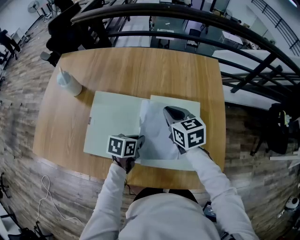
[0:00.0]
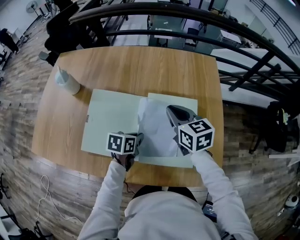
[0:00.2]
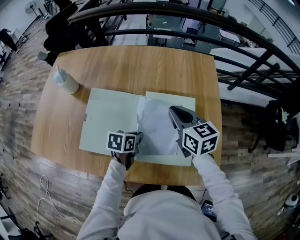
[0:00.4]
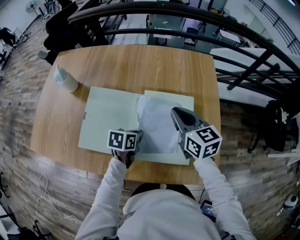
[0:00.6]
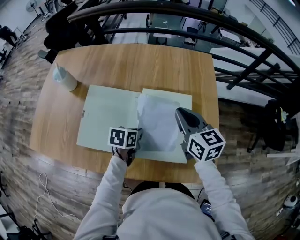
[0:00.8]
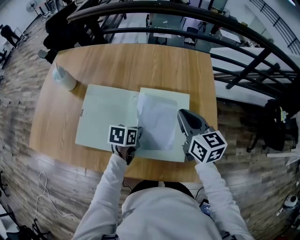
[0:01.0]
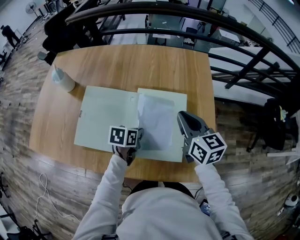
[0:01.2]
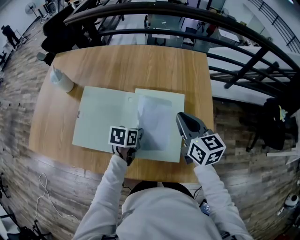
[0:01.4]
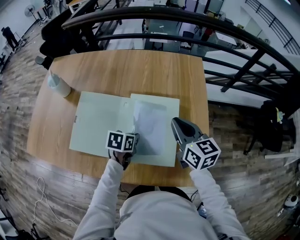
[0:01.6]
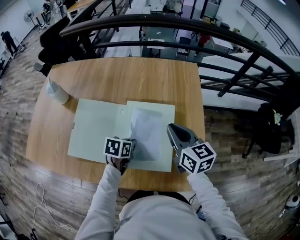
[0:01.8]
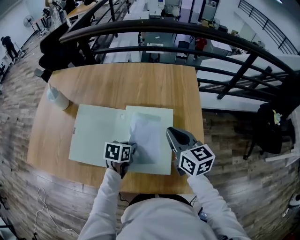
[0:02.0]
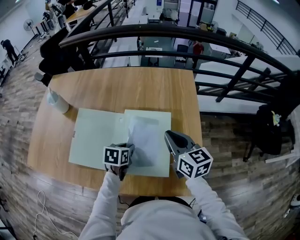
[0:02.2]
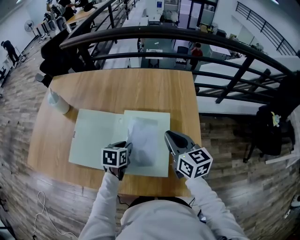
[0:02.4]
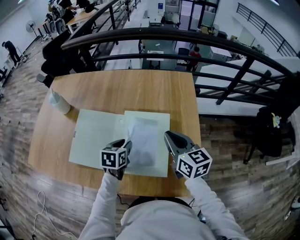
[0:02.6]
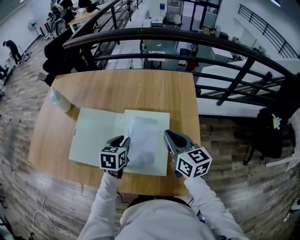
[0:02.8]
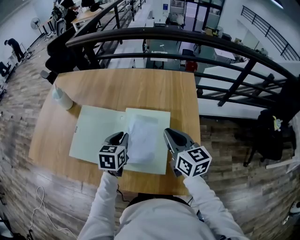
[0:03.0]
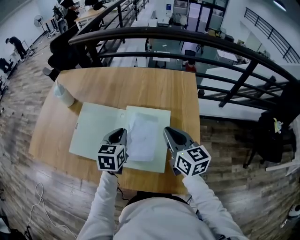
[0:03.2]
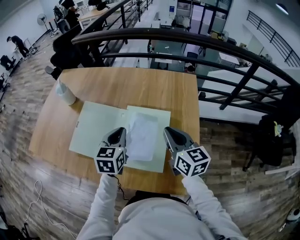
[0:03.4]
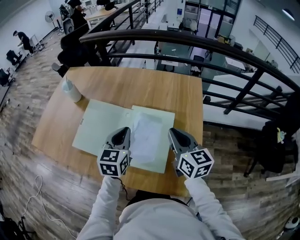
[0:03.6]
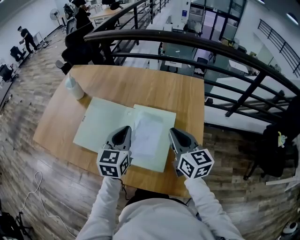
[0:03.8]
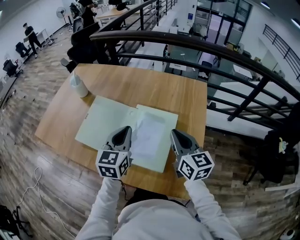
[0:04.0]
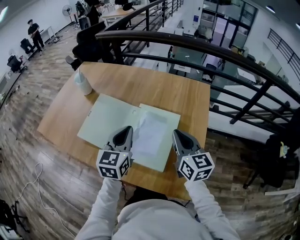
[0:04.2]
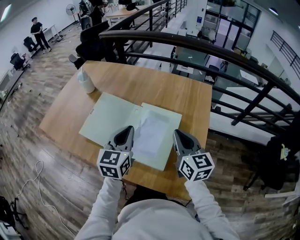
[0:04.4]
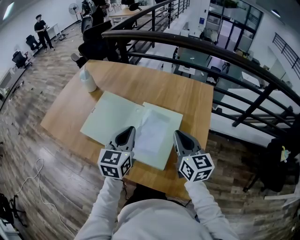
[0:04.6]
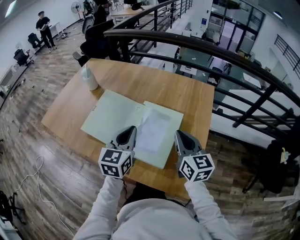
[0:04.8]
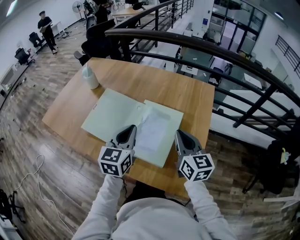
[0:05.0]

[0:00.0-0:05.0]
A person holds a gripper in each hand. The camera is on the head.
0:00.0 to 0:01.6: The right gripper is displaced to the right, backward and upward by some 15 cm. The left gripper heads to the right, covering about 5 cm.
0:01.6 to 0:03.4: The left gripper goes roughly 15 cm upward, turns by about 40 degrees, and opens, then closes once more.
0:03.4 to 0:05.0: The left gripper is displaced backward and upward by approximately 10 cm.

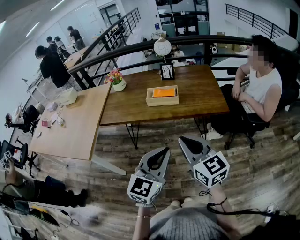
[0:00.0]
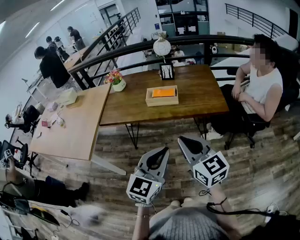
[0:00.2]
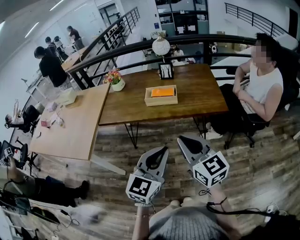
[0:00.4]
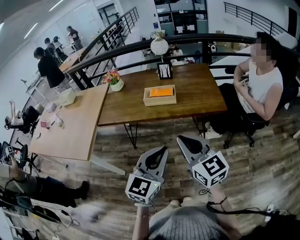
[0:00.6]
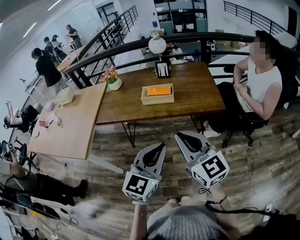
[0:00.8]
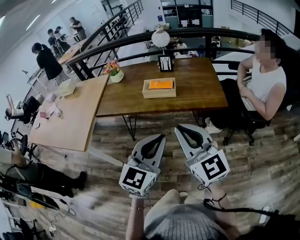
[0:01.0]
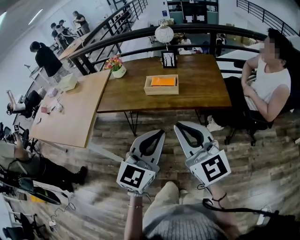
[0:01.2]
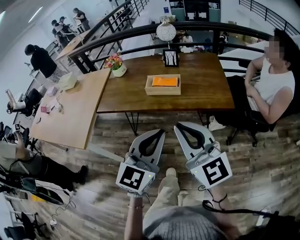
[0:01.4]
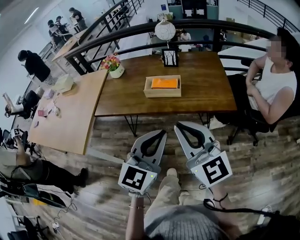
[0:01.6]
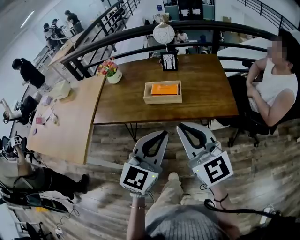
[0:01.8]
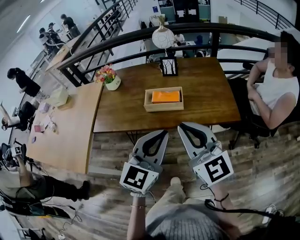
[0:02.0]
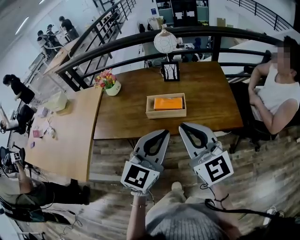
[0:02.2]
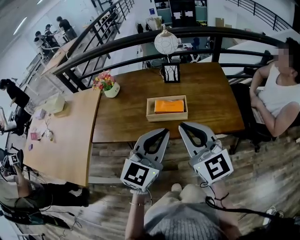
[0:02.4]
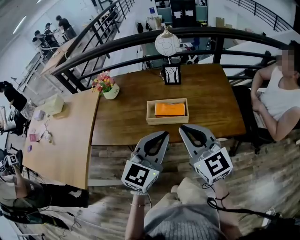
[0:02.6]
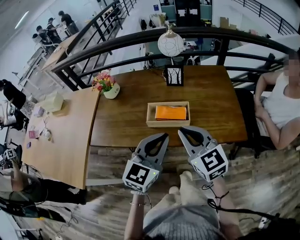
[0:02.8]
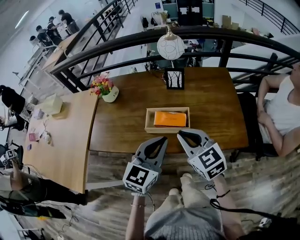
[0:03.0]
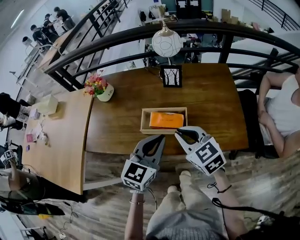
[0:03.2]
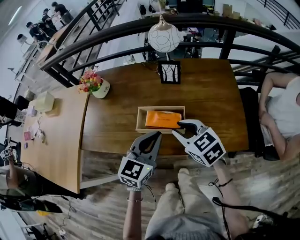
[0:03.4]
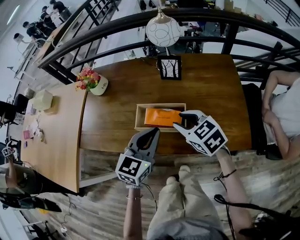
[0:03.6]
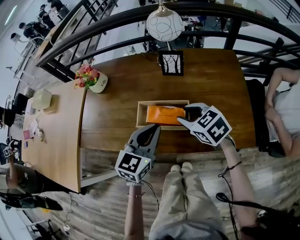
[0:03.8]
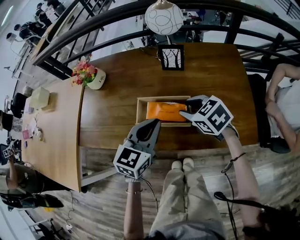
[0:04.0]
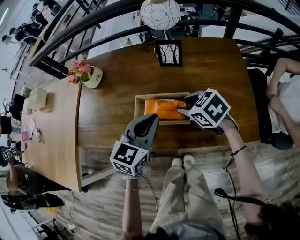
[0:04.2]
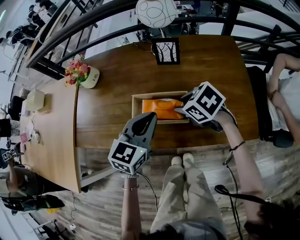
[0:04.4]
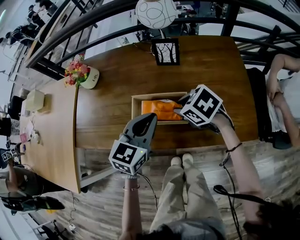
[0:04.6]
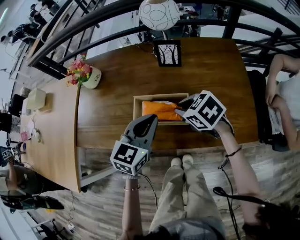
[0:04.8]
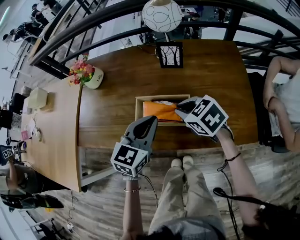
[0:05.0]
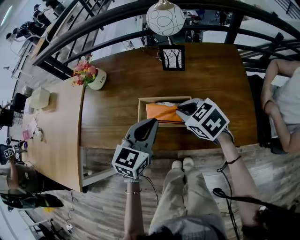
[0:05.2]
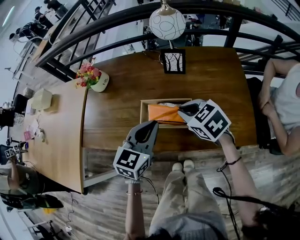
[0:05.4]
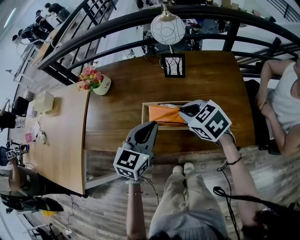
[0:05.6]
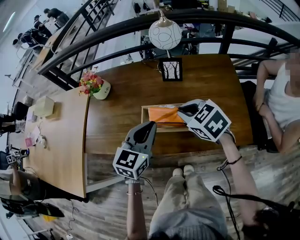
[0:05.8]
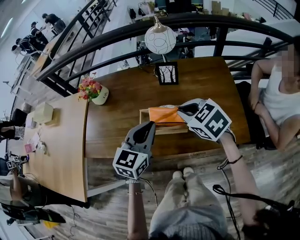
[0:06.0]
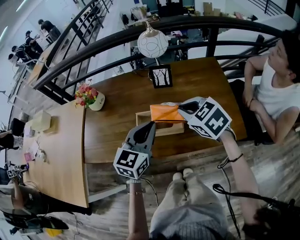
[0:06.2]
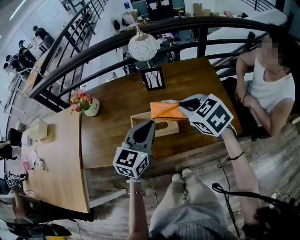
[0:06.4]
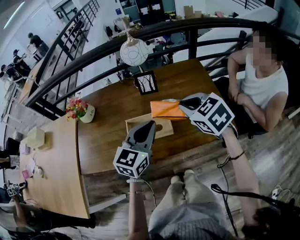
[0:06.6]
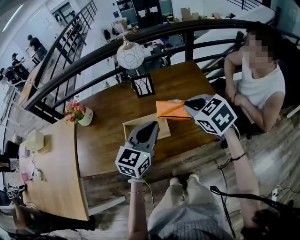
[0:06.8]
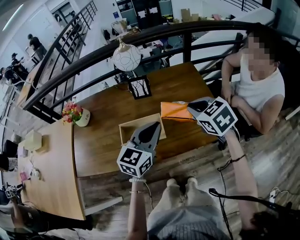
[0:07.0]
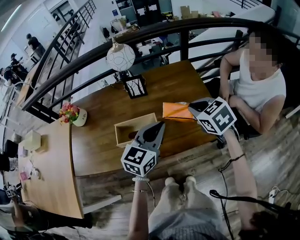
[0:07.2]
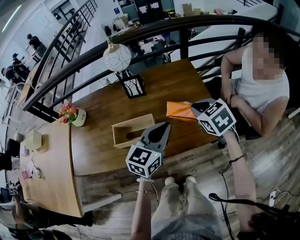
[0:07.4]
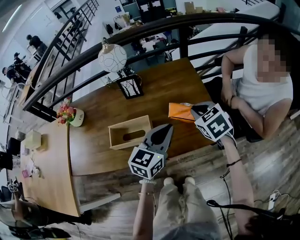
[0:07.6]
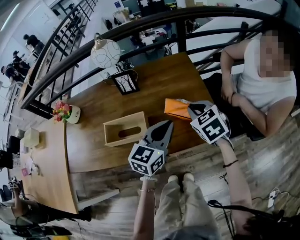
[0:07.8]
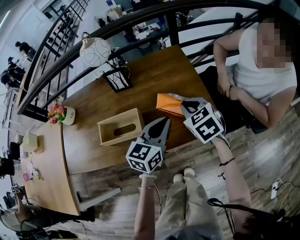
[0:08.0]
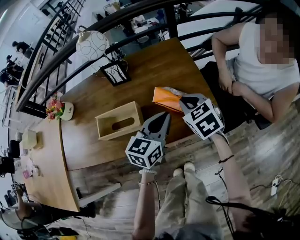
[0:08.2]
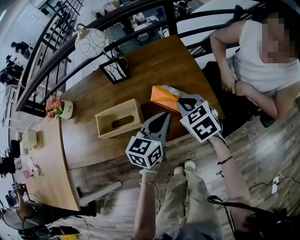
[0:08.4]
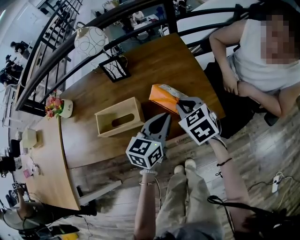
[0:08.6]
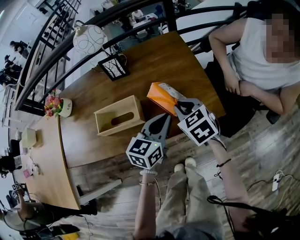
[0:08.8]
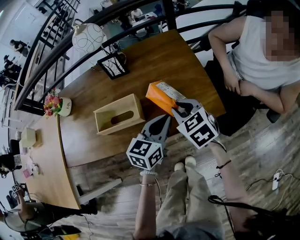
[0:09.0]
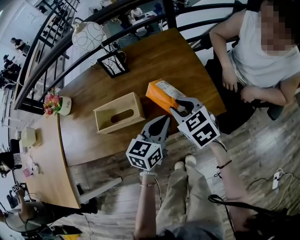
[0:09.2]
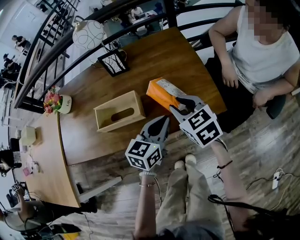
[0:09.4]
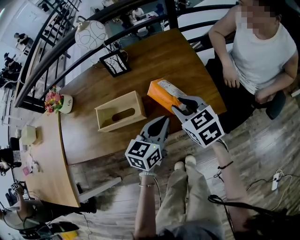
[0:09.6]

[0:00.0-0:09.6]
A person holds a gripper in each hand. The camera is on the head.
0:00.0 to 0:01.6: The left gripper shifts approximately 10 cm forward. Meanwhile the right gripper moves forward and upward, about 10 cm.
0:01.6 to 0:03.2: The right gripper shifts some 30 cm forward and downward, and tips its fingers downward by about 40 degrees; the left gripper heads forward, covering some 25 cm.
0:03.2 to 0:04.8: The left gripper goes approximately 10 cm forward and downward. Meanwhile the right gripper travels downward and forward by roughly 15 cm, and rotates roughly 30 degrees.
0:04.8 to 0:06.4: The left gripper heads upward, covering about 10 cm. The right gripper travels upward and to the right by approximately 15 cm, and changes its angle by roughly 20 degrees.
0:06.4 to 0:08.0: The right gripper moves to the right and downward, about 20 cm; the left gripper goes some 20 cm to the right.
0:08.0 to 0:09.6: The left gripper moves roughly 5 cm; the right gripper moves backward, roughly 5 cm.

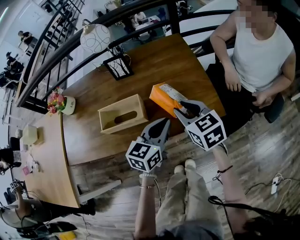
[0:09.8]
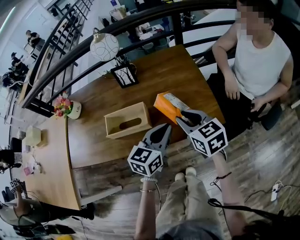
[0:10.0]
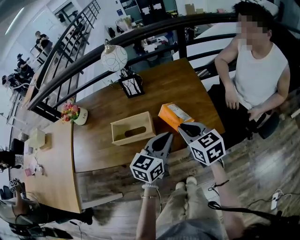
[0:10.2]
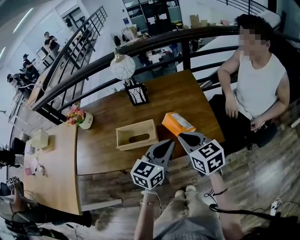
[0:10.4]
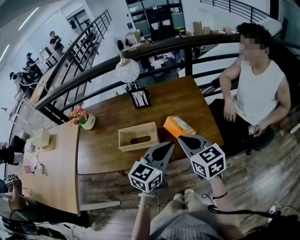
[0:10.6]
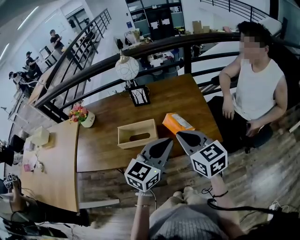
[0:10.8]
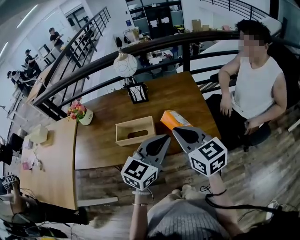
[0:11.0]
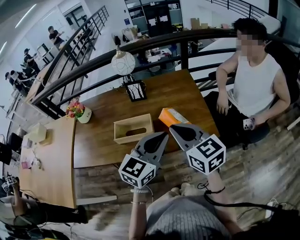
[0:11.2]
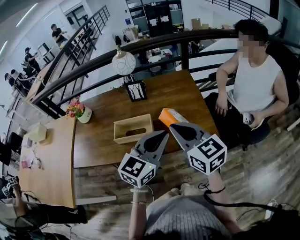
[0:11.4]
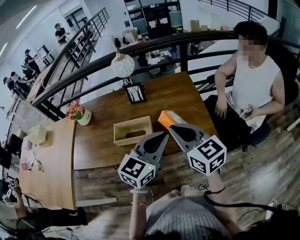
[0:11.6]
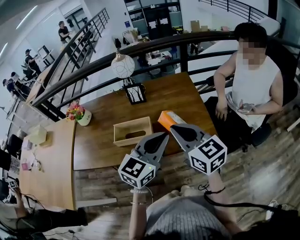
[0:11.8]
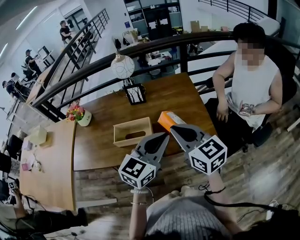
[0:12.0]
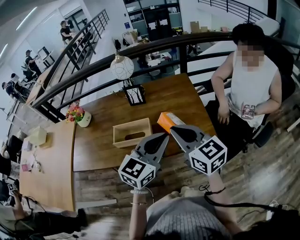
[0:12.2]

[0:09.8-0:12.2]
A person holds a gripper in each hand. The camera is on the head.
0:09.8 to 0:11.0: The right gripper travels upward and backward by some 15 cm, and closes up, while the left gripper shifts about 15 cm upward.
0:11.0 to 0:12.2: The grippers stay close to where they were, moving slightly.

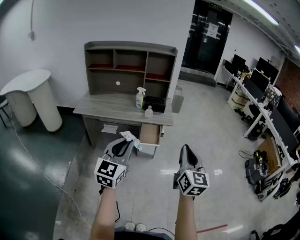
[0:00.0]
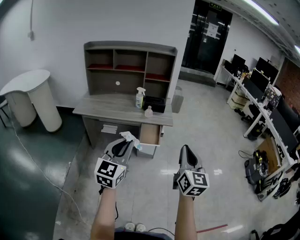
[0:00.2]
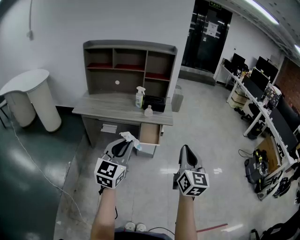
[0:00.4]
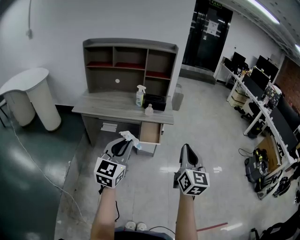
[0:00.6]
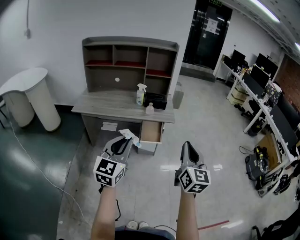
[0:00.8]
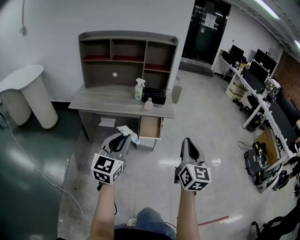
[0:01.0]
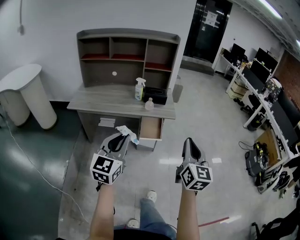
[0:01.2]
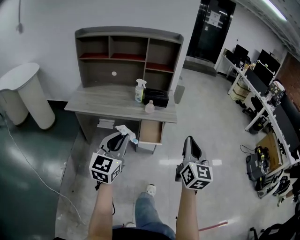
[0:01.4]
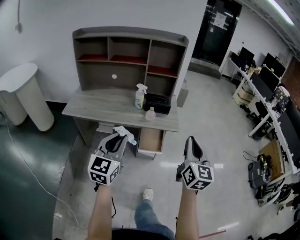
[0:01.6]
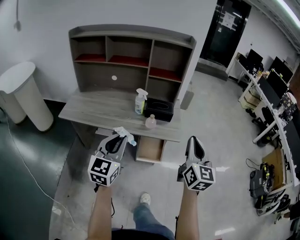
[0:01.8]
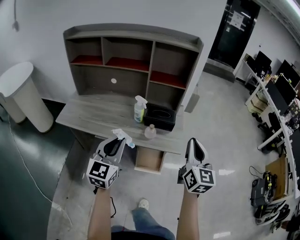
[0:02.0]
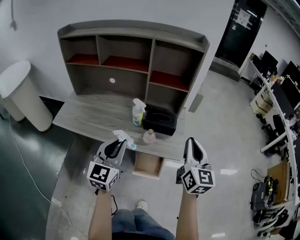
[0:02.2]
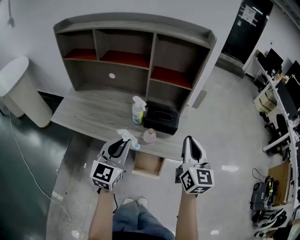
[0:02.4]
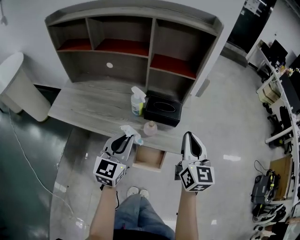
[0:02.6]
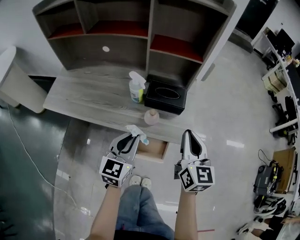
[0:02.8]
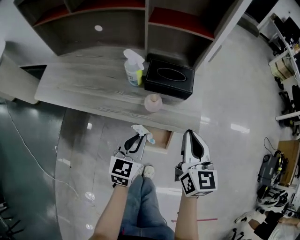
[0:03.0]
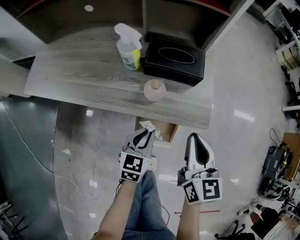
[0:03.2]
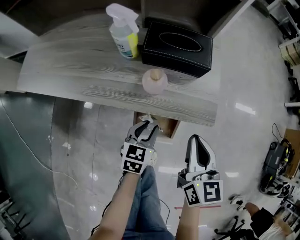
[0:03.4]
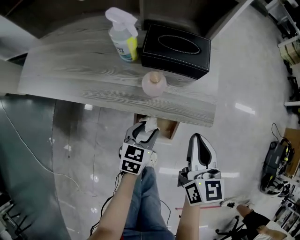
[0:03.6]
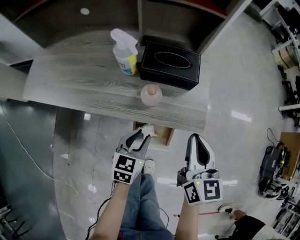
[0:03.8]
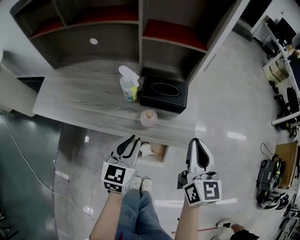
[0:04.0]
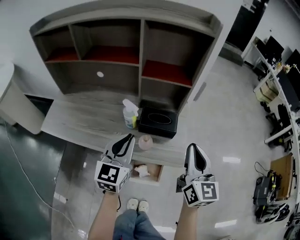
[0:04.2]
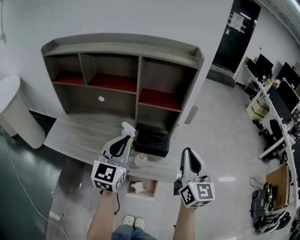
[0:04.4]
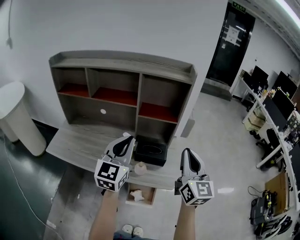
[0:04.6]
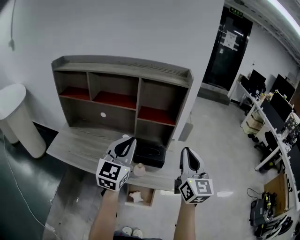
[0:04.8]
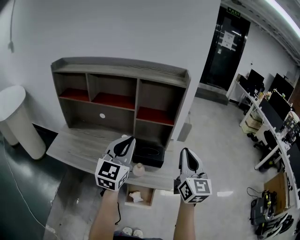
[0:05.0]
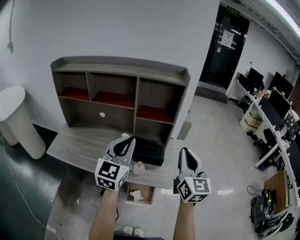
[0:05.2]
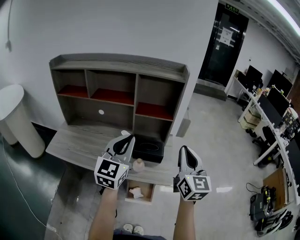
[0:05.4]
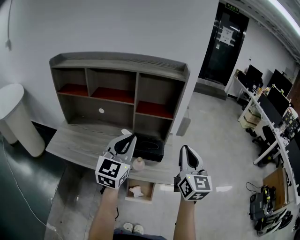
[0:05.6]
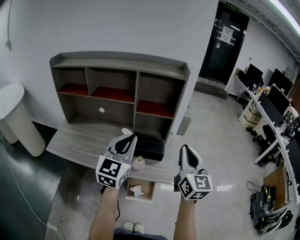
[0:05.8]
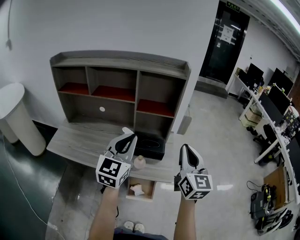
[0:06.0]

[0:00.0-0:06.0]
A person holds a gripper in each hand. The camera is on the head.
0:00.0 to 0:01.6: The grippers both shift forward by some 20 cm.
0:01.6 to 0:03.0: The two grippers go roughly 35 cm forward and downward. The right gripper swivels roughly 20 degrees; the left gripper swivels roughly 30 degrees.
0:03.0 to 0:04.4: The grippers both shift upward by some 25 cm. The left gripper changes its angle by roughly 30 degrees, and opens, then closes again. Meanwhile the right gripper swivels roughly 20 degrees.
0:04.4 to 0:06.0: The left gripper goes approximately 5 cm upward. The right gripper moves some 5 cm.
